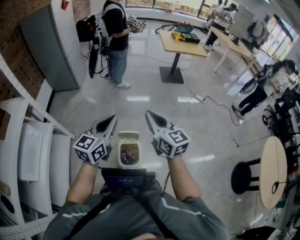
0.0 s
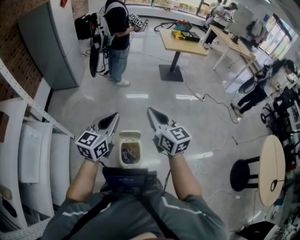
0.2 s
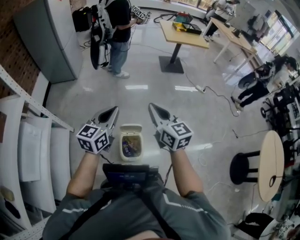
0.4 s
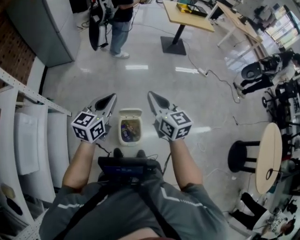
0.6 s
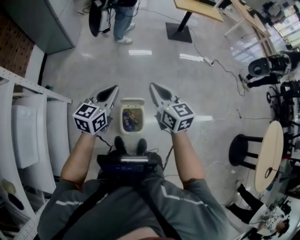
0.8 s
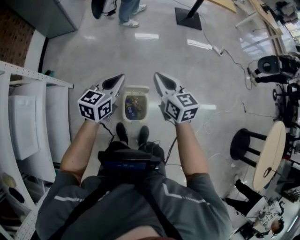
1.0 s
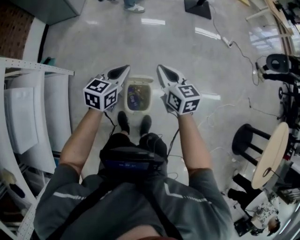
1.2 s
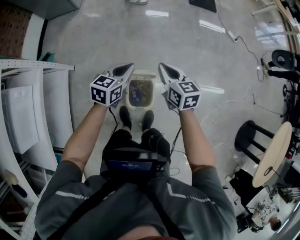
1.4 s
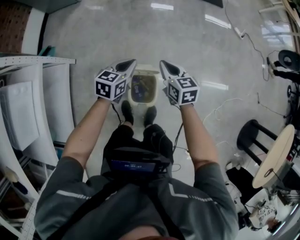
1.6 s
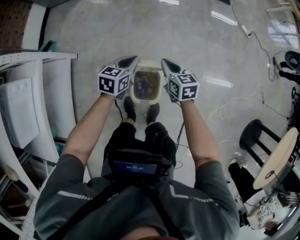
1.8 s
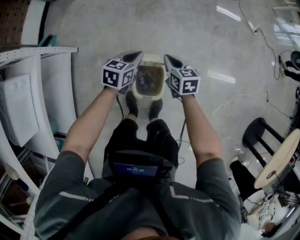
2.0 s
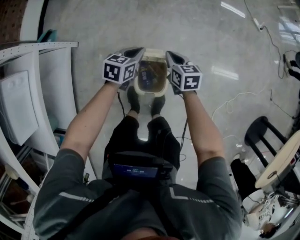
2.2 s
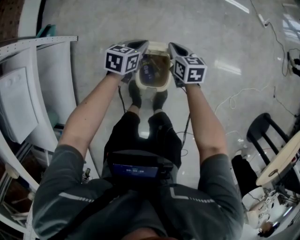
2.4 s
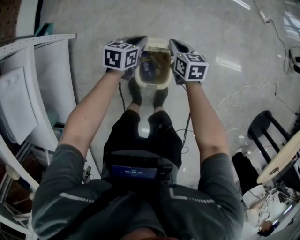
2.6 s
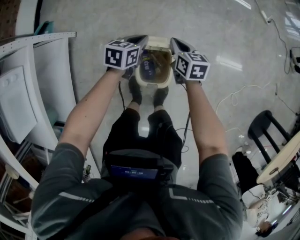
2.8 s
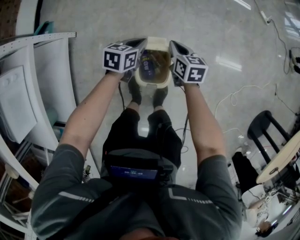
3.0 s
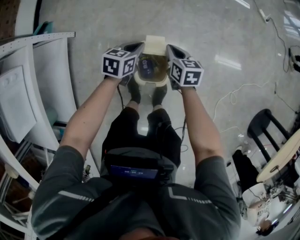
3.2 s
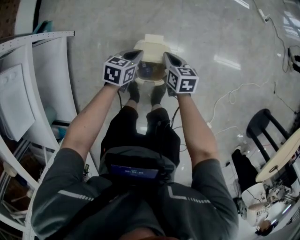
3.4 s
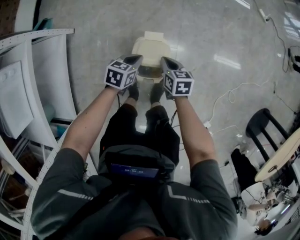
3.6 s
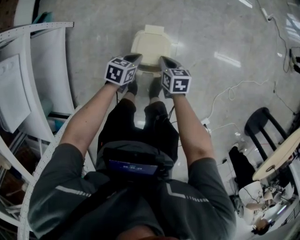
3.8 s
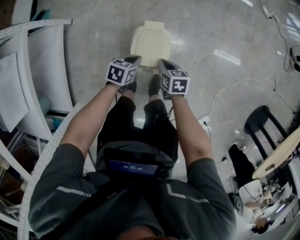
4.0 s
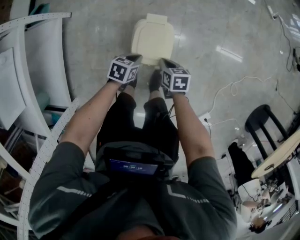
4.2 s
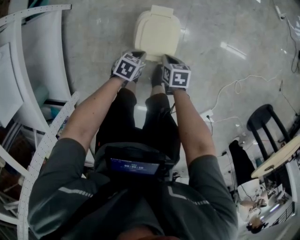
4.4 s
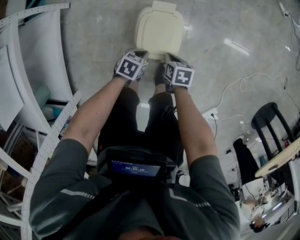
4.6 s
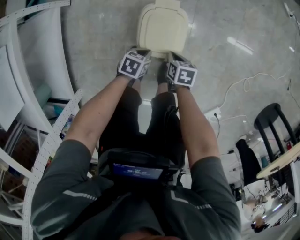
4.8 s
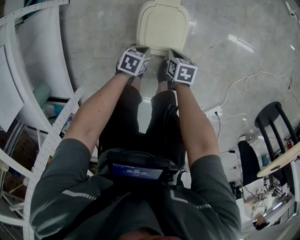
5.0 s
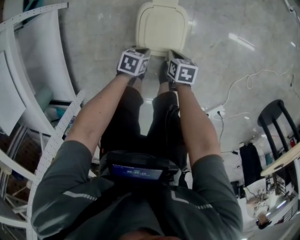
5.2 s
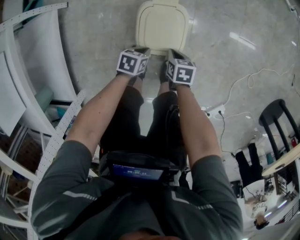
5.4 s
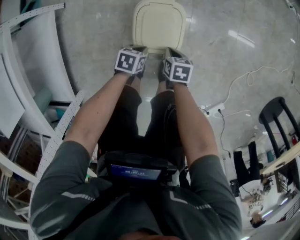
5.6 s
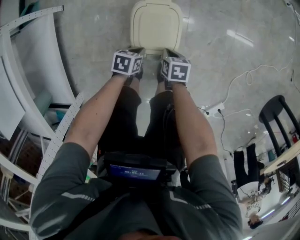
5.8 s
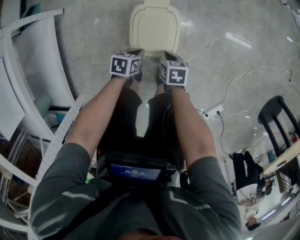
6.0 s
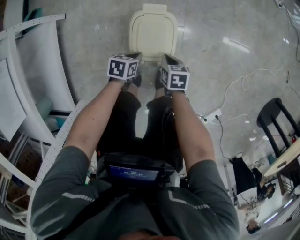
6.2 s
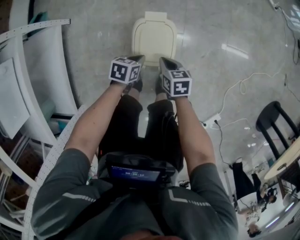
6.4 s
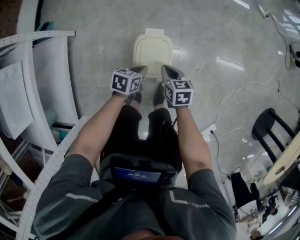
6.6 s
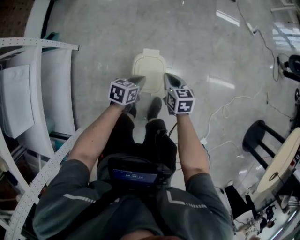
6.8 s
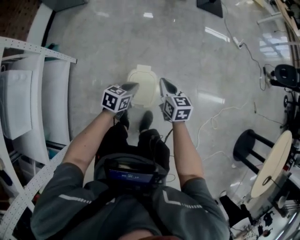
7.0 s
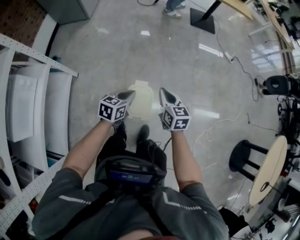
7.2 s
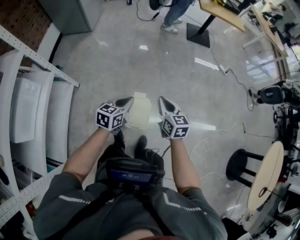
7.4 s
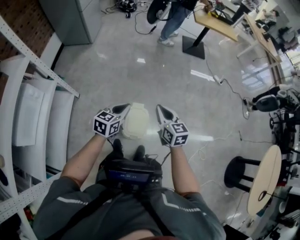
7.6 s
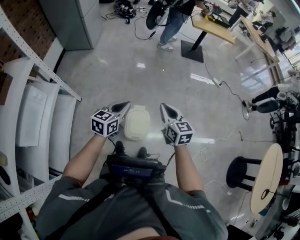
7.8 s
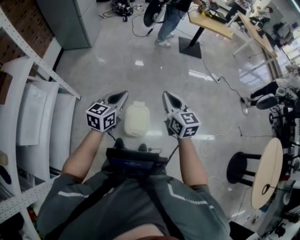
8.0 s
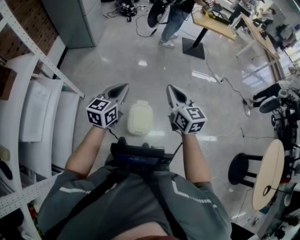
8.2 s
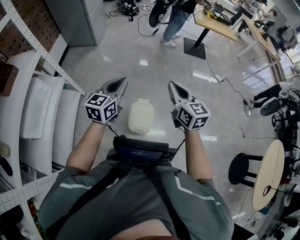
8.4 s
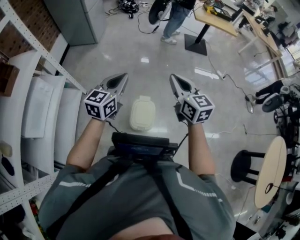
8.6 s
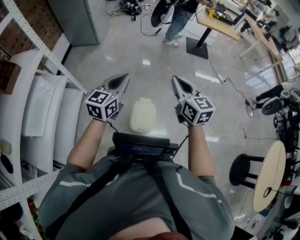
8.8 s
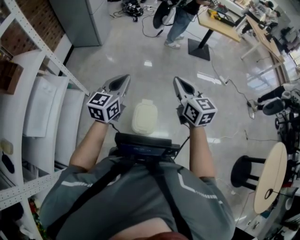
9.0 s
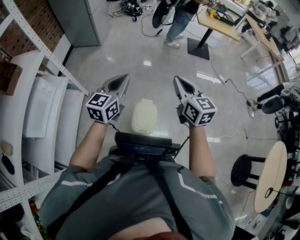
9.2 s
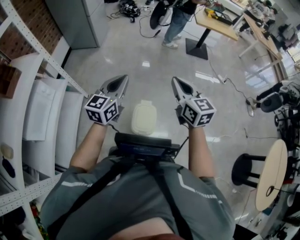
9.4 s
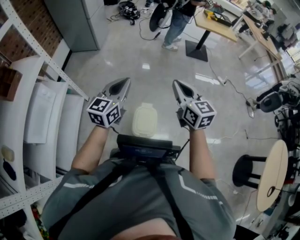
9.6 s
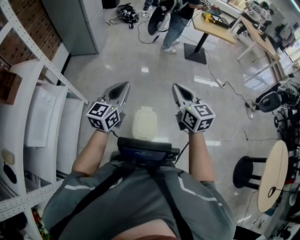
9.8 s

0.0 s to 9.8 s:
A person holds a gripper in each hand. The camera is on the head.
0.0 to 1.4 s: The grippers both shift downward and forward by about 30 cm. The right gripper changes its angle by some 30 degrees. Meanwhile the left gripper rotates some 30 degrees.
1.4 to 2.8 s: Both grippers travel together downward, some 20 cm.
2.8 to 4.2 s: Both grippers travel together backward and downward, approximately 25 cm. The right gripper swivels about 20 degrees.
4.2 to 5.6 s: Both grippers move downward, roughly 10 cm.
5.6 to 7.0 s: The two grippers go about 35 cm upward and forward. The left gripper changes its angle by approximately 30 degrees; the right gripper points its fingers approximately 30 degrees further upward.
7.0 to 8.4 s: Both grippers move upward, roughly 30 cm. The right gripper turns by some 20 degrees. The left gripper changes its angle by approximately 40 degrees.
8.4 to 9.8 s: The grippers move only a little.

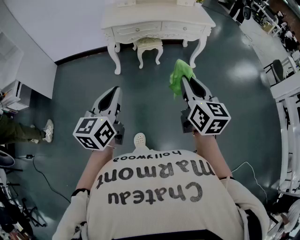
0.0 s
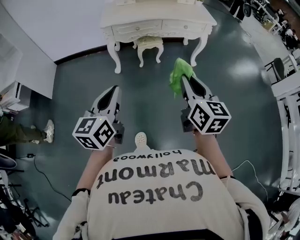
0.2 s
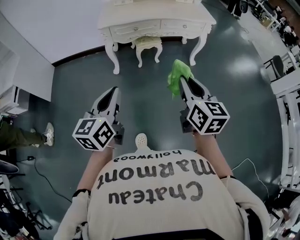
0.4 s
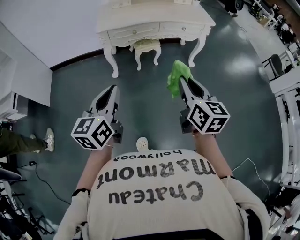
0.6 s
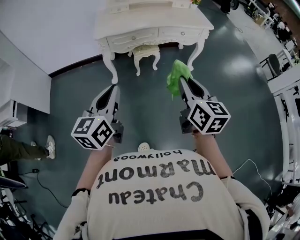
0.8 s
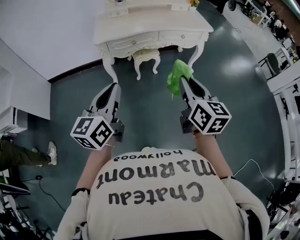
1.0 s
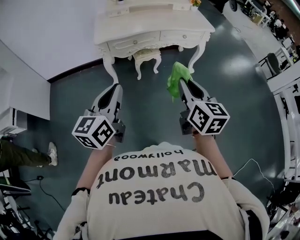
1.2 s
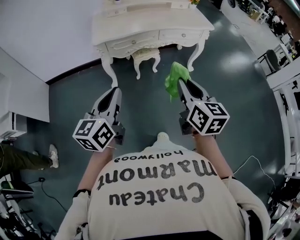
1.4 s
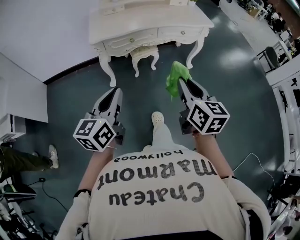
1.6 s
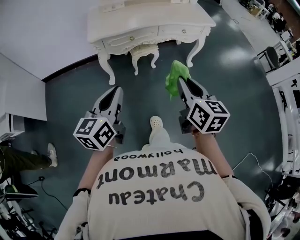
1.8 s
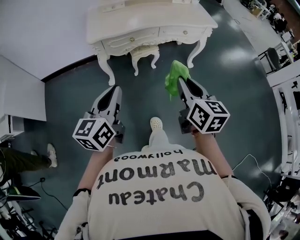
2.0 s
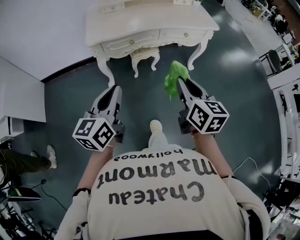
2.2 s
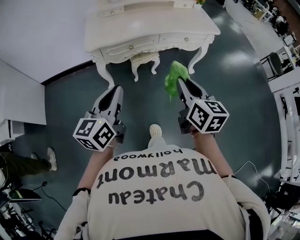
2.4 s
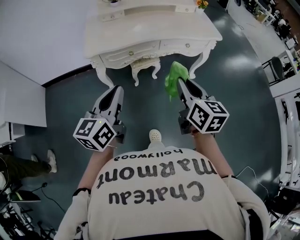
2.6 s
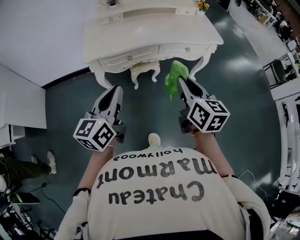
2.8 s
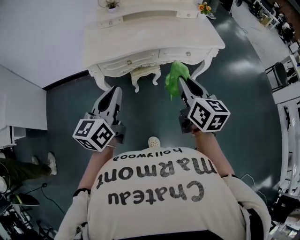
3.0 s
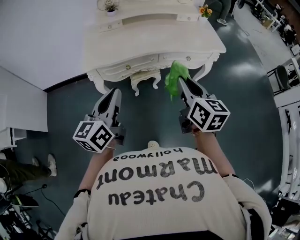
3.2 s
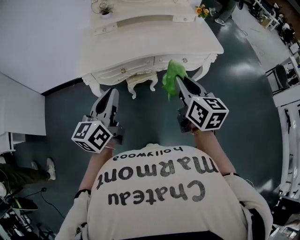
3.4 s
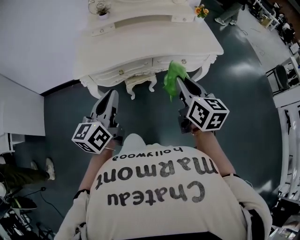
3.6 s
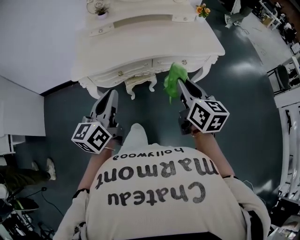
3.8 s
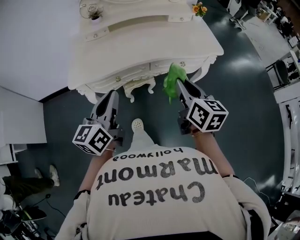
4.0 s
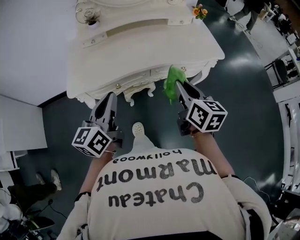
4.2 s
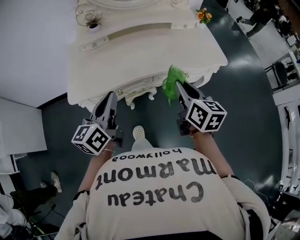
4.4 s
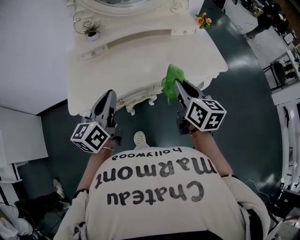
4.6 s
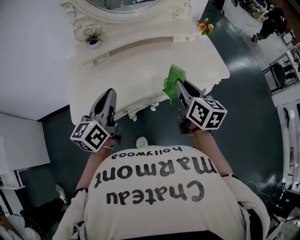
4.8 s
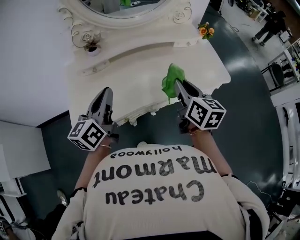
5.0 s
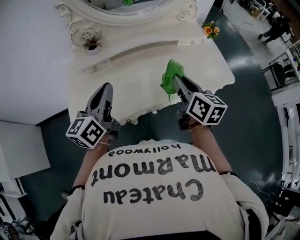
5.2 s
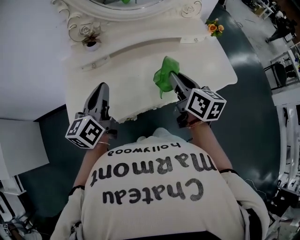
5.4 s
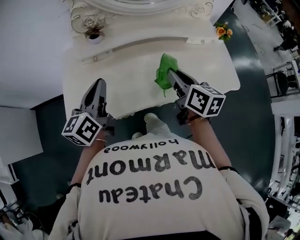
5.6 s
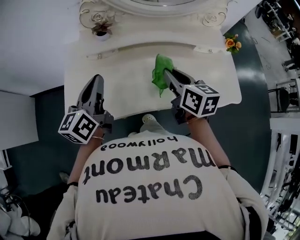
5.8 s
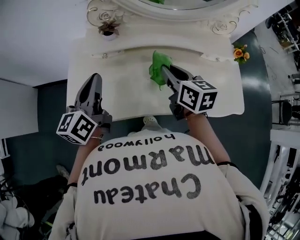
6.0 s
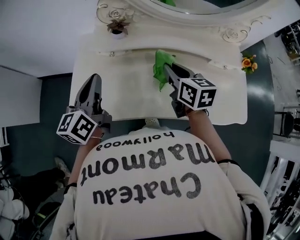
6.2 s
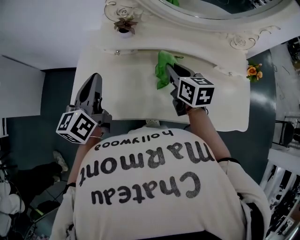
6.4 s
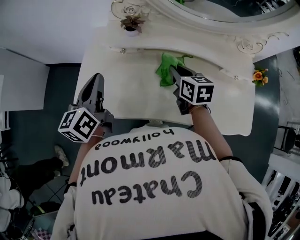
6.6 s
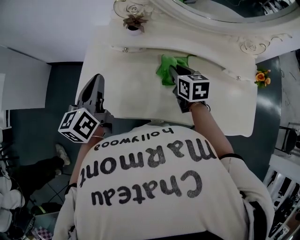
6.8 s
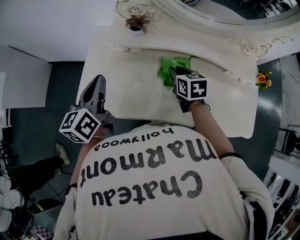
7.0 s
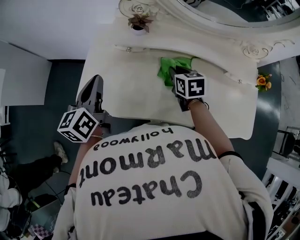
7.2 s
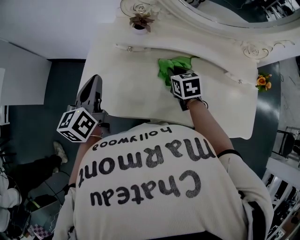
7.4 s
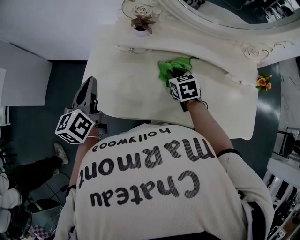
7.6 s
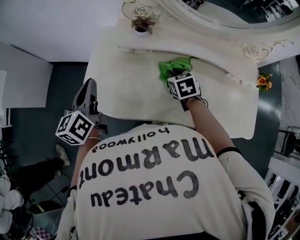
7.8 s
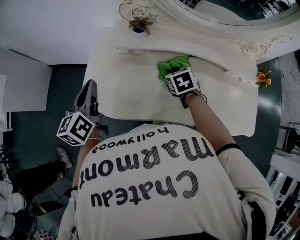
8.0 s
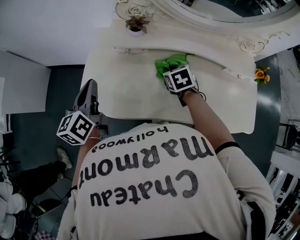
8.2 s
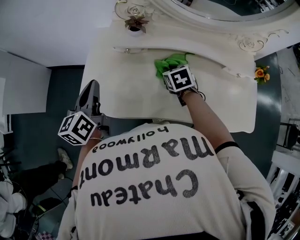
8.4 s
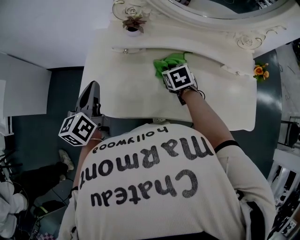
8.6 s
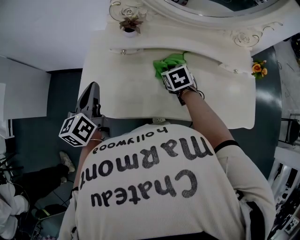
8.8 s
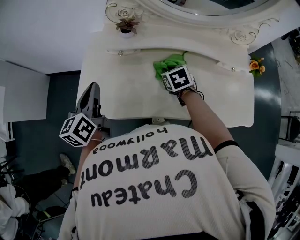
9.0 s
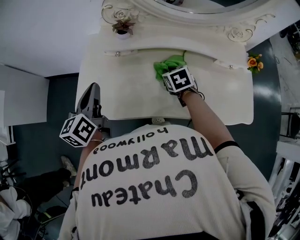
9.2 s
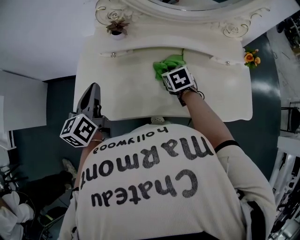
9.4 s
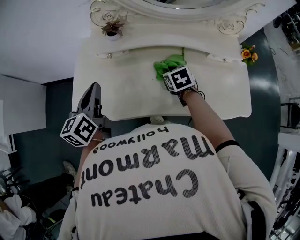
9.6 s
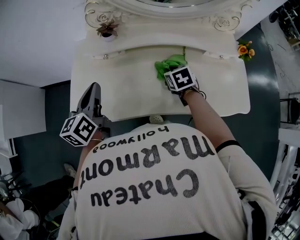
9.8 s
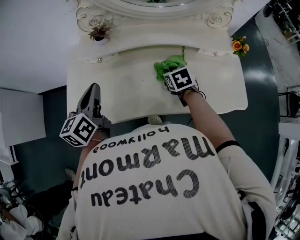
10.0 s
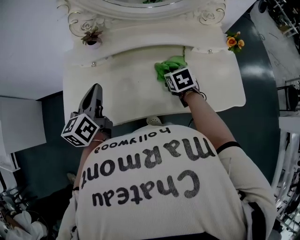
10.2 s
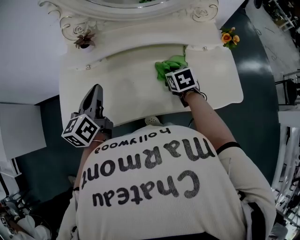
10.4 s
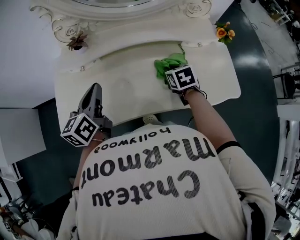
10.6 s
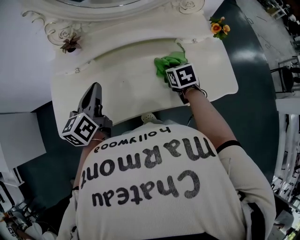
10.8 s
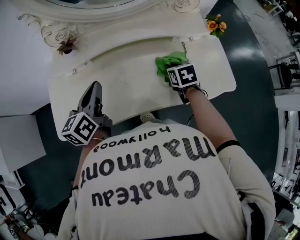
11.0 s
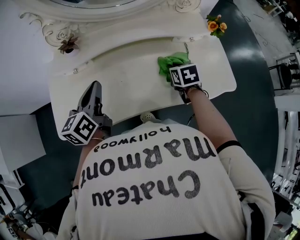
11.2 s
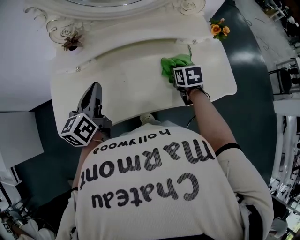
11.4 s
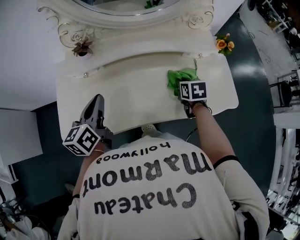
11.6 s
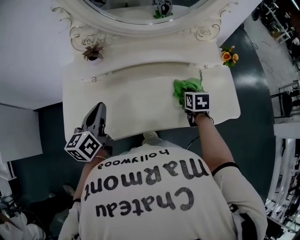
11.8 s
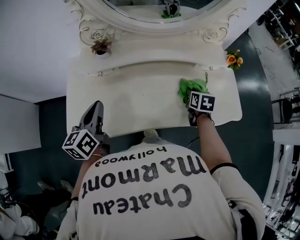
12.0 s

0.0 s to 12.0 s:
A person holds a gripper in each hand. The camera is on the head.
0.0 to 1.6 s: The left gripper heads forward, covering about 15 cm; the right gripper shifts about 15 cm forward and to the left.
1.6 to 3.0 s: Both grippers move forward, about 20 cm.
3.0 to 4.4 s: Both grippers travel together forward, approximately 20 cm.
4.4 to 6.0 s: Both grippers move forward and to the left, some 25 cm. The right gripper turns by approximately 20 degrees.
6.0 to 7.6 s: The left gripper moves to the left, approximately 10 cm. The right gripper heads downward and forward, covering about 15 cm, and turns by roughly 40 degrees.
7.6 to 9.0 s: There are only small adjustments of the grippers.
9.0 to 10.4 s: Both grippers travel together to the right, approximately 15 cm.
10.4 to 12.0 s: The left gripper travels to the left by about 5 cm; the right gripper moves to the right, some 5 cm, and turns by about 20 degrees.

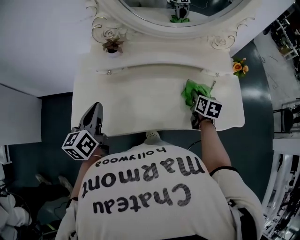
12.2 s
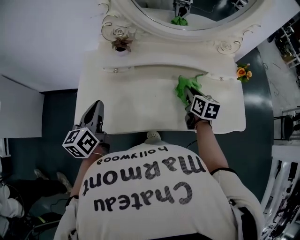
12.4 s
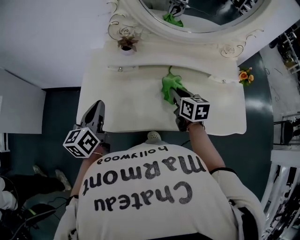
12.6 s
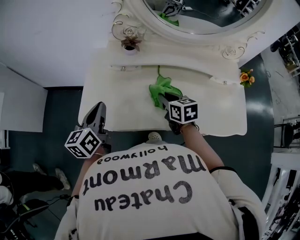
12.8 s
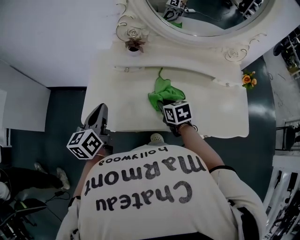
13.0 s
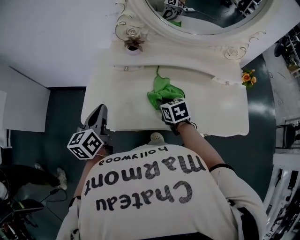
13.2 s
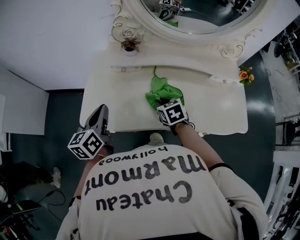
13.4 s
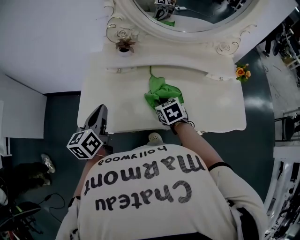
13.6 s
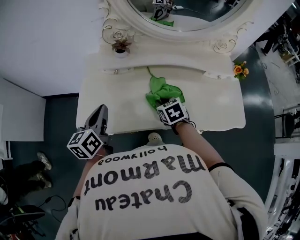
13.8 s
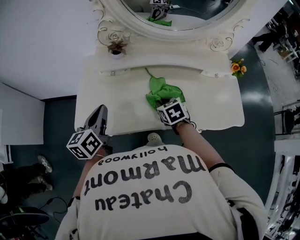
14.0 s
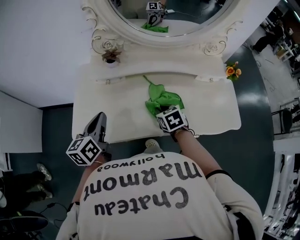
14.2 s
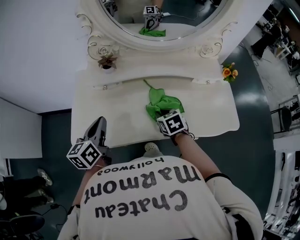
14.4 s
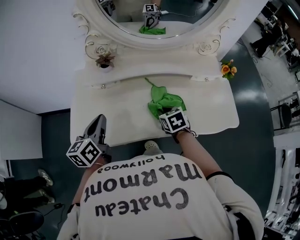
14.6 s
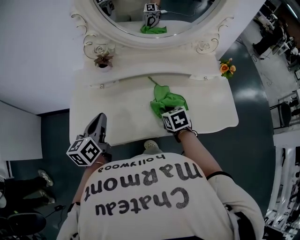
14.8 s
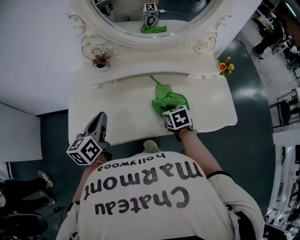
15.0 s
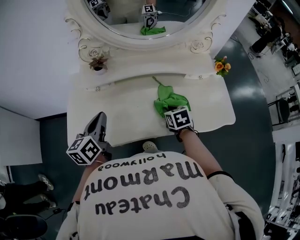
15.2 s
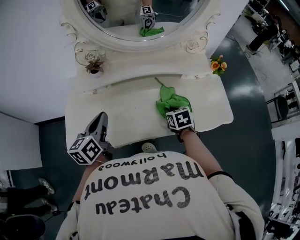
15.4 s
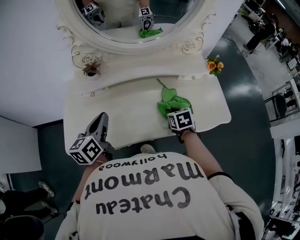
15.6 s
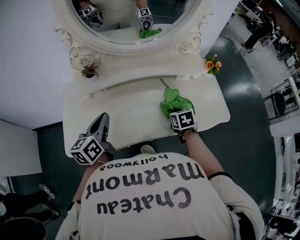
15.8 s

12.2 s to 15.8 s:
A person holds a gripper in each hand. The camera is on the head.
12.2 to 14.0 s: The right gripper moves to the left, approximately 20 cm, and changes its angle by roughly 40 degrees.
14.0 to 15.8 s: The right gripper goes about 15 cm to the right, and turns by about 20 degrees; the left gripper travels to the right by roughly 10 cm.
